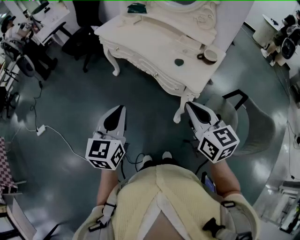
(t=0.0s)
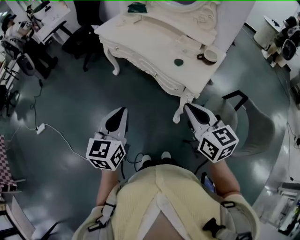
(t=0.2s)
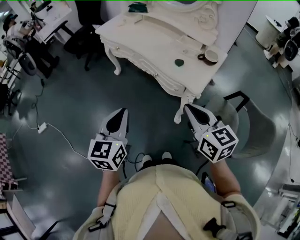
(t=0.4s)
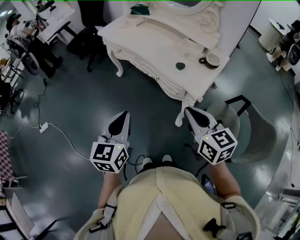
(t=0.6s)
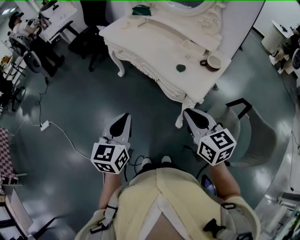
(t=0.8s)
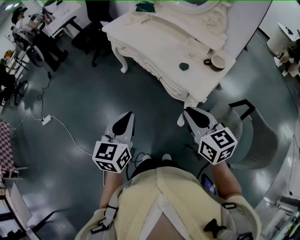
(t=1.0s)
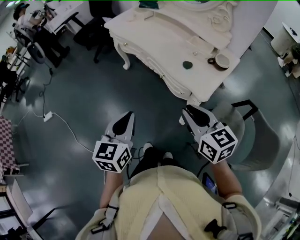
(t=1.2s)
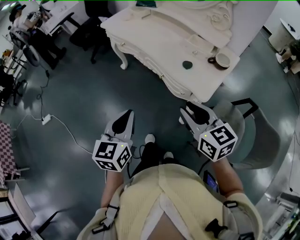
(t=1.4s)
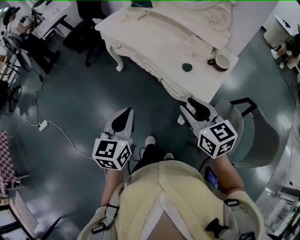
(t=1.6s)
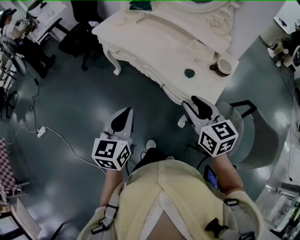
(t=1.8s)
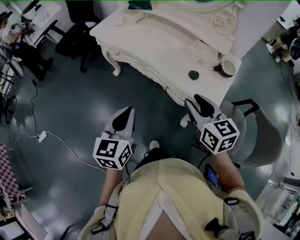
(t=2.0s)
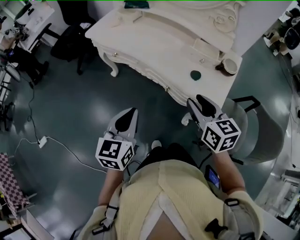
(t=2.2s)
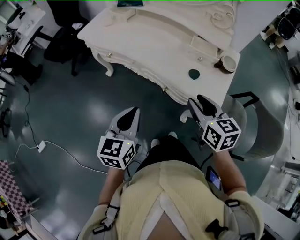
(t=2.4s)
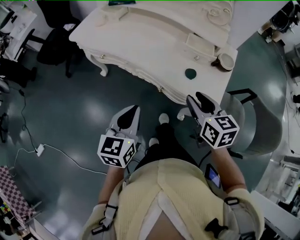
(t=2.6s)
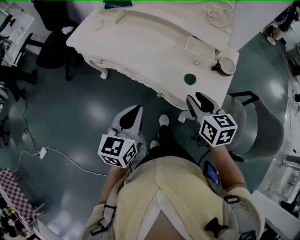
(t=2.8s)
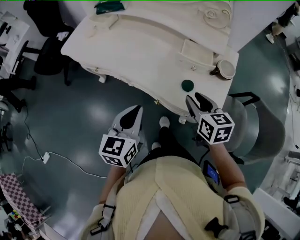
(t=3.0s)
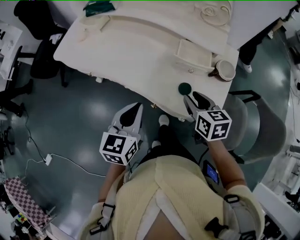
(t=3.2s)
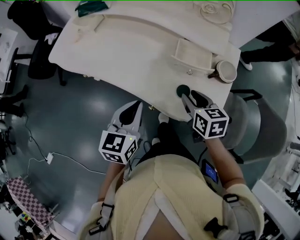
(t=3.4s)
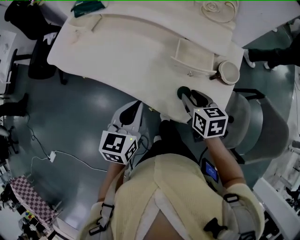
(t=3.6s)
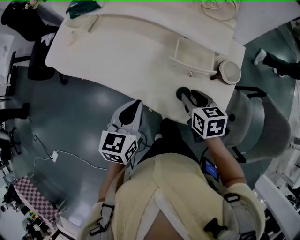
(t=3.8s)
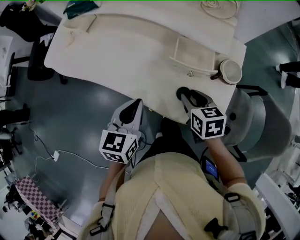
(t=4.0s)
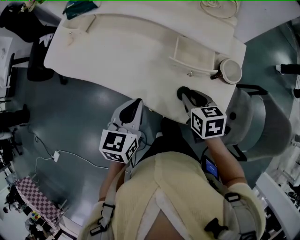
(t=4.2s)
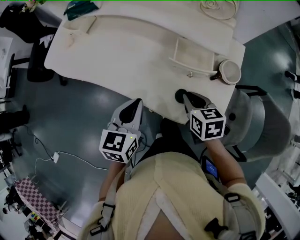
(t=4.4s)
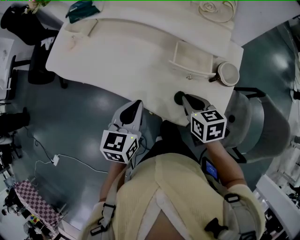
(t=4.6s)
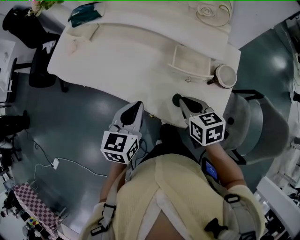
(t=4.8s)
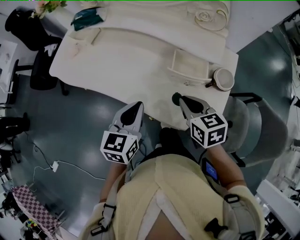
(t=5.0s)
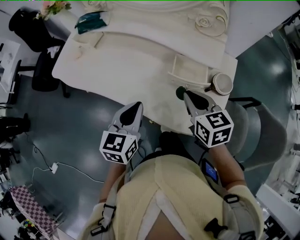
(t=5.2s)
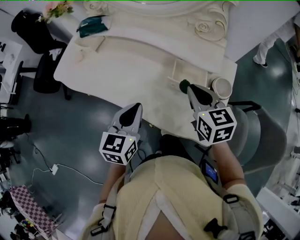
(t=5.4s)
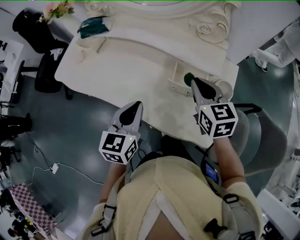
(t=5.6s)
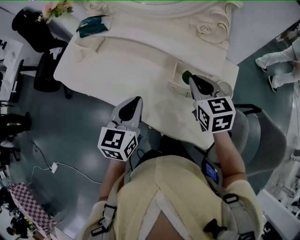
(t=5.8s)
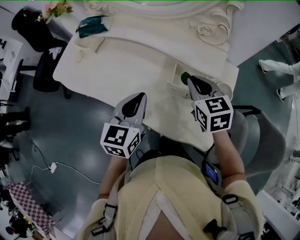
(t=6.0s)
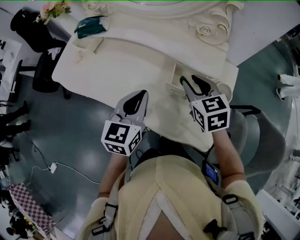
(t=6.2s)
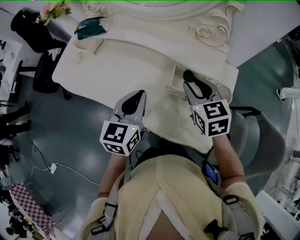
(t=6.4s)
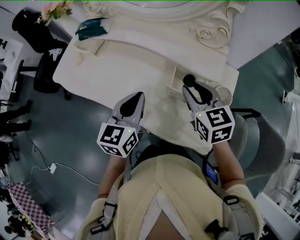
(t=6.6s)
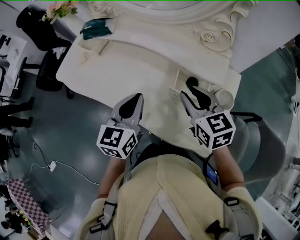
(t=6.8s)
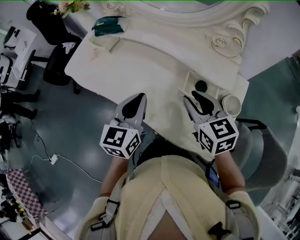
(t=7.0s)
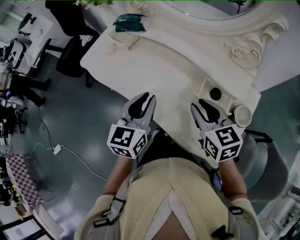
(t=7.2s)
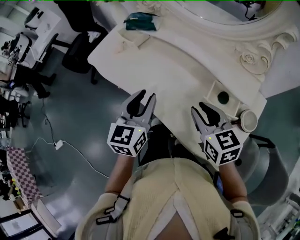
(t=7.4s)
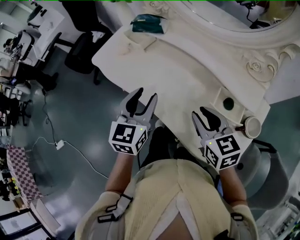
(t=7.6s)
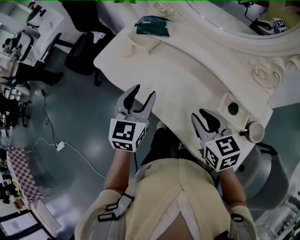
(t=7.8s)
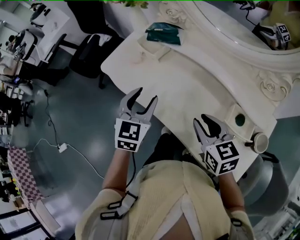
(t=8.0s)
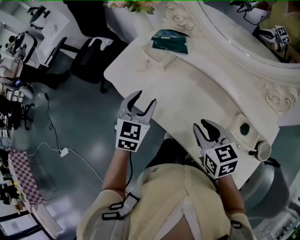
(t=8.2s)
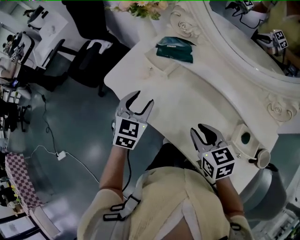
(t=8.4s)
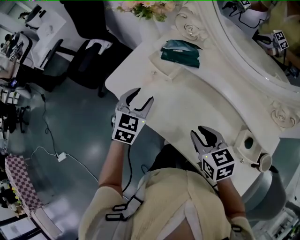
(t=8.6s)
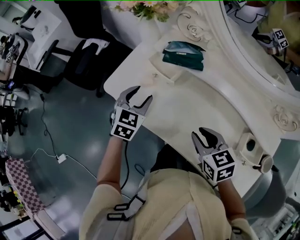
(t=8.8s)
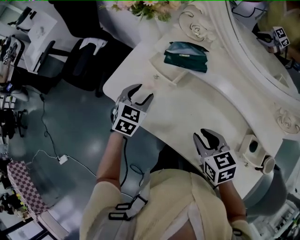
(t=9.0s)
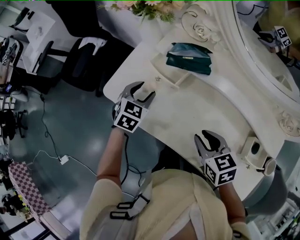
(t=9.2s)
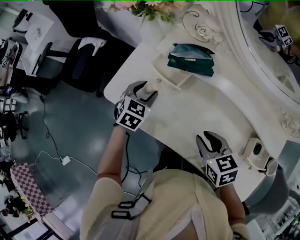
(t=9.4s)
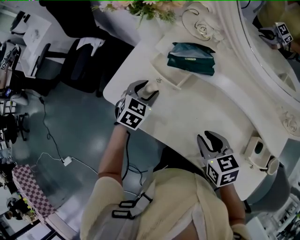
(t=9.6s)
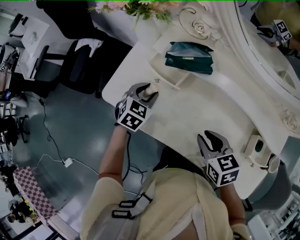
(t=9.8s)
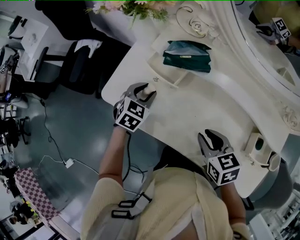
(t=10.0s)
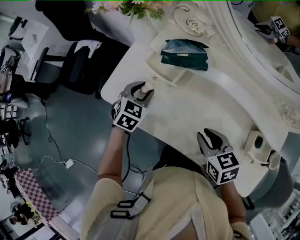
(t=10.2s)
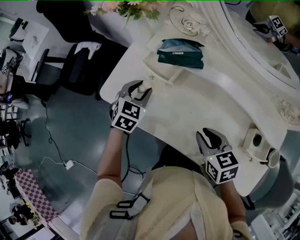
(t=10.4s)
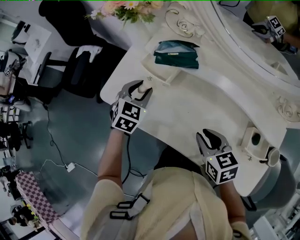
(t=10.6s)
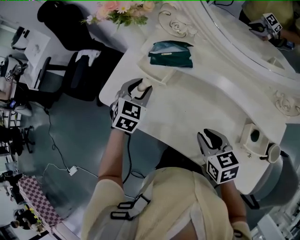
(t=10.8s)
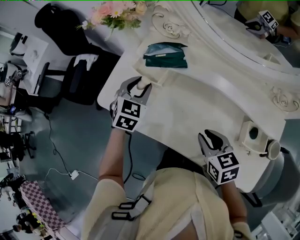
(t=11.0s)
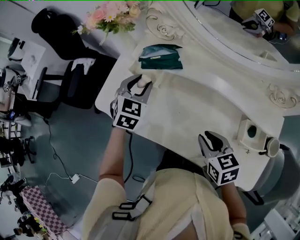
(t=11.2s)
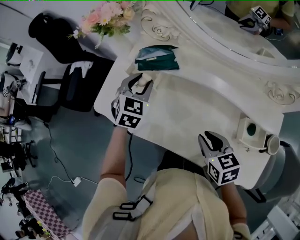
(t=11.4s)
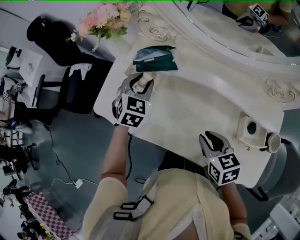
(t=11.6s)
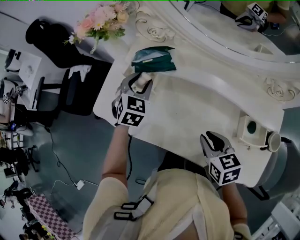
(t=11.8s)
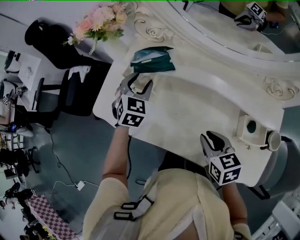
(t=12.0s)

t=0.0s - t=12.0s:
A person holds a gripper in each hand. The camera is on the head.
t=0.0s - t=1.6s: Both grippers move forward, approximately 10 cm. The right gripper opens up.
t=1.6s - t=3.0s: The left gripper is displaced forward by roughly 20 cm, and changes its angle by approximately 20 degrees, while the right gripper heads forward and downward, covering roughly 25 cm, and changes its angle by roughly 30 degrees.
t=3.0s - t=4.4s: The right gripper travels downward and forward by roughly 10 cm, and closes its fingers. The left gripper heads forward, covering about 10 cm.
t=4.4s - t=6.0s: The right gripper goes some 15 cm forward and upward, and turns by some 20 degrees; the left gripper goes some 10 cm forward and upward.
t=6.0s - t=7.6s: Both grippers move to the left, some 15 cm. The left gripper opens; the right gripper swivels roughly 20 degrees, and opens up.
t=7.6s - t=9.0s: The right gripper moves forward, to the left and downward, roughly 20 cm; the left gripper moves forward, to the left and downward, roughly 35 cm, and swivels some 30 degrees.
t=9.0s - t=10.4s: The grippers stay close to where they were, moving slightly.
t=10.4s - t=12.0s: The right gripper goes roughly 5 cm to the right, while the left gripper shifts roughly 10 cm to the right and upward.

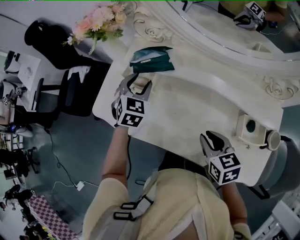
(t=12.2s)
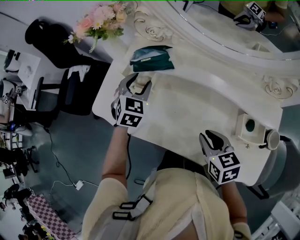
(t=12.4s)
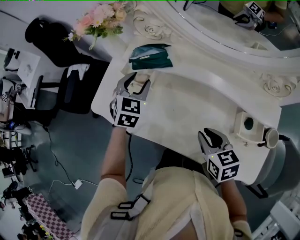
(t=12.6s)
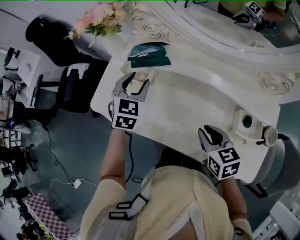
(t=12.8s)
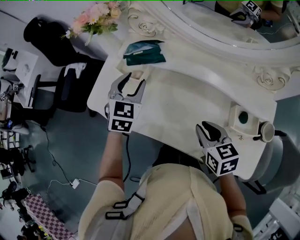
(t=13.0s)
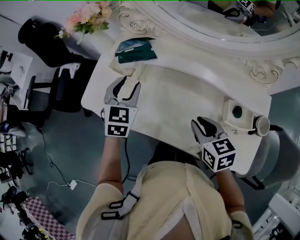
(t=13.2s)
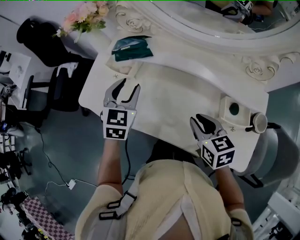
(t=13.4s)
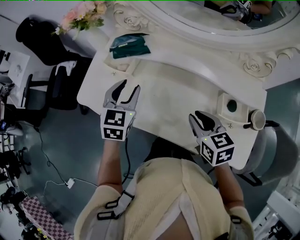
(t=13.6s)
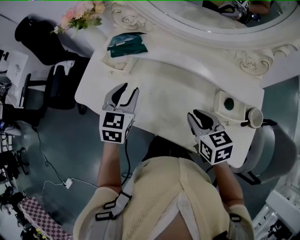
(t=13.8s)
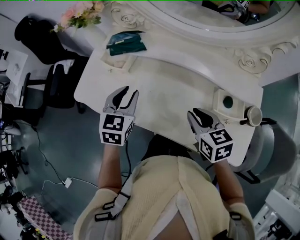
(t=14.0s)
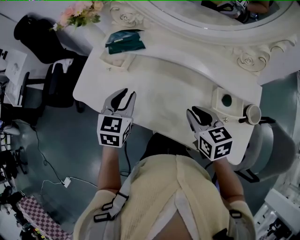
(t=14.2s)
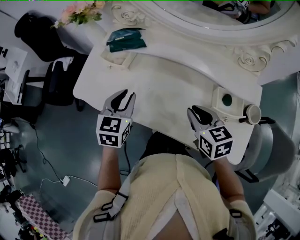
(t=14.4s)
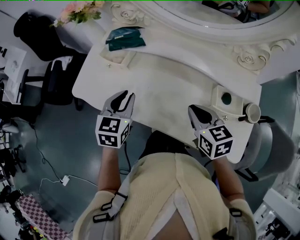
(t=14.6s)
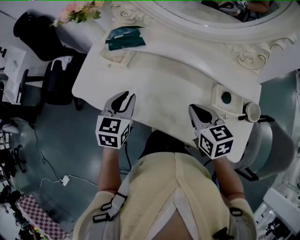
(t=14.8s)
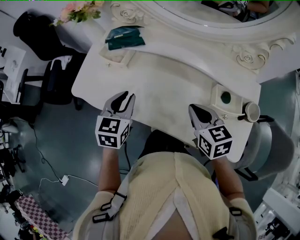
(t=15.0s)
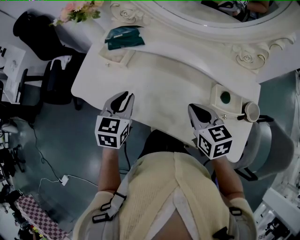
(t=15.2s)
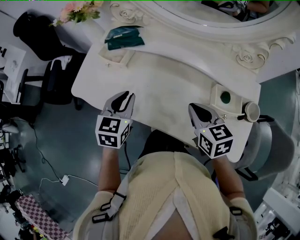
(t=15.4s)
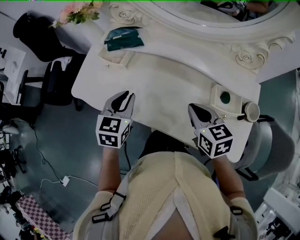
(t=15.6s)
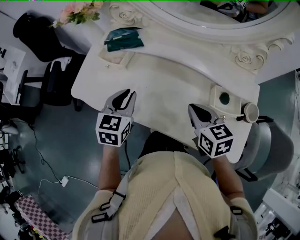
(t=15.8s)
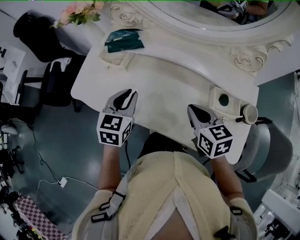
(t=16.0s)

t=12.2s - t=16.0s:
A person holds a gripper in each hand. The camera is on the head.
t=12.2s - t=13.4s: The left gripper goes about 10 cm backward.
t=13.4s - t=14.8s: The right gripper closes. The left gripper is displaced backward by approximately 10 cm, and closes its fingers.
t=14.8s - t=16.0s: The grippers move only a little.

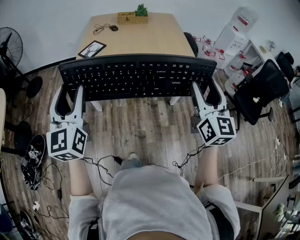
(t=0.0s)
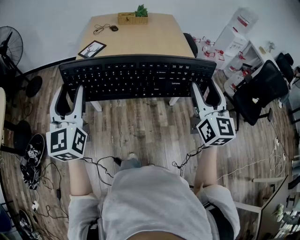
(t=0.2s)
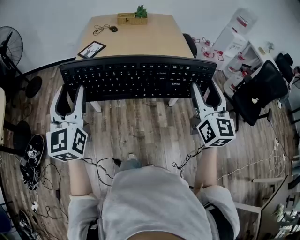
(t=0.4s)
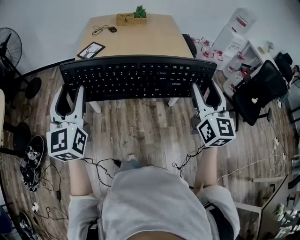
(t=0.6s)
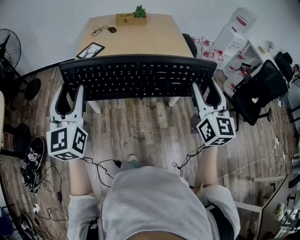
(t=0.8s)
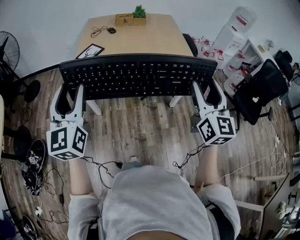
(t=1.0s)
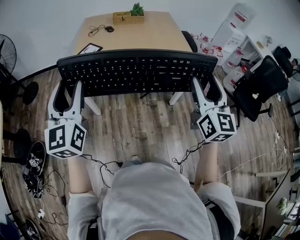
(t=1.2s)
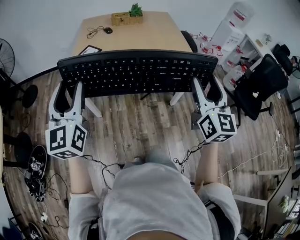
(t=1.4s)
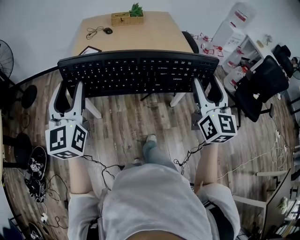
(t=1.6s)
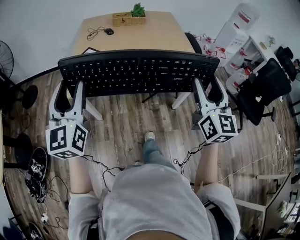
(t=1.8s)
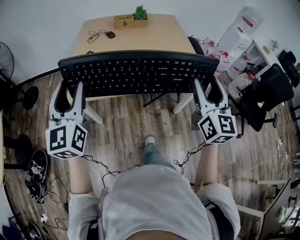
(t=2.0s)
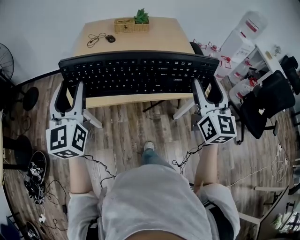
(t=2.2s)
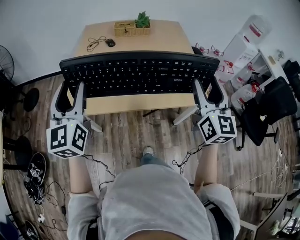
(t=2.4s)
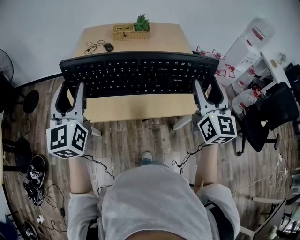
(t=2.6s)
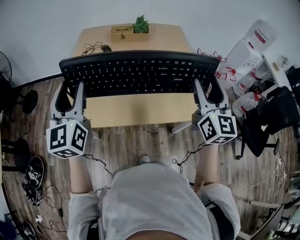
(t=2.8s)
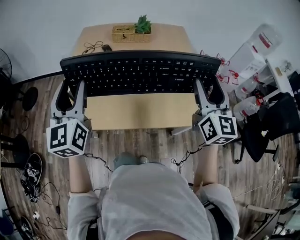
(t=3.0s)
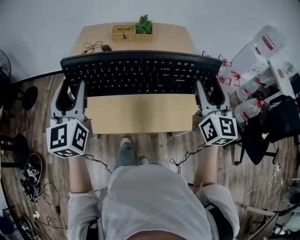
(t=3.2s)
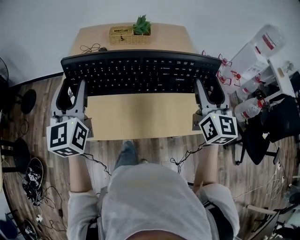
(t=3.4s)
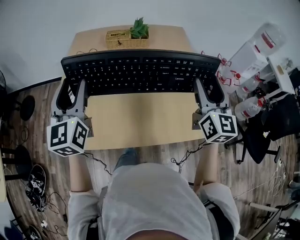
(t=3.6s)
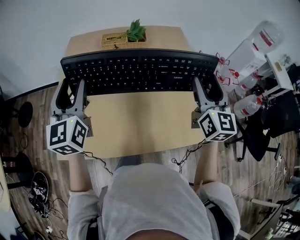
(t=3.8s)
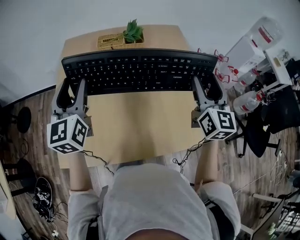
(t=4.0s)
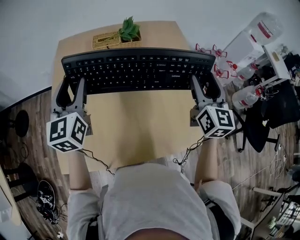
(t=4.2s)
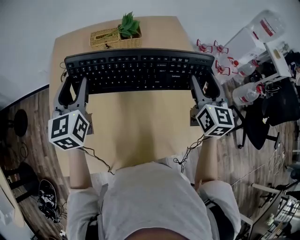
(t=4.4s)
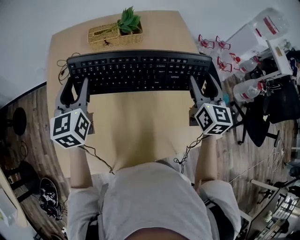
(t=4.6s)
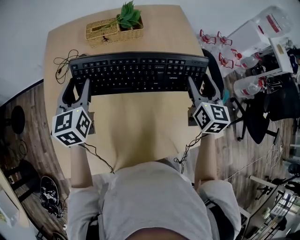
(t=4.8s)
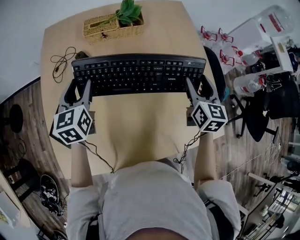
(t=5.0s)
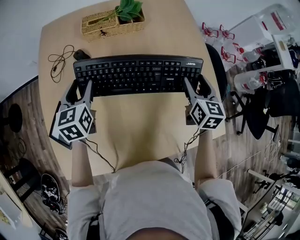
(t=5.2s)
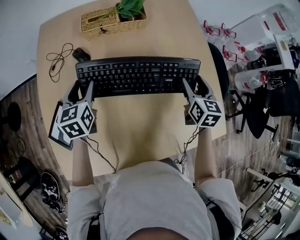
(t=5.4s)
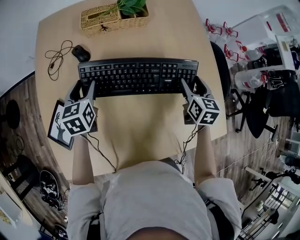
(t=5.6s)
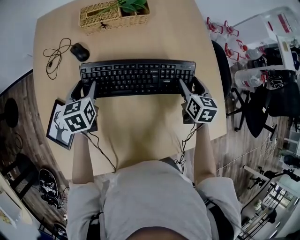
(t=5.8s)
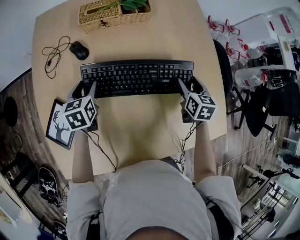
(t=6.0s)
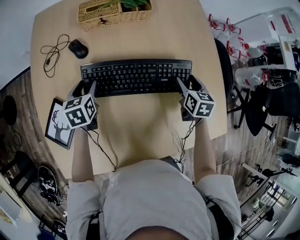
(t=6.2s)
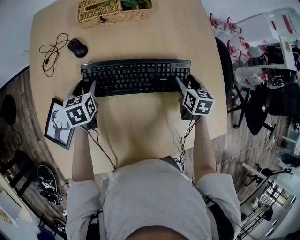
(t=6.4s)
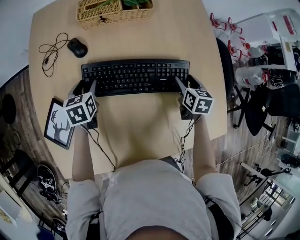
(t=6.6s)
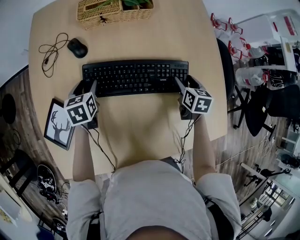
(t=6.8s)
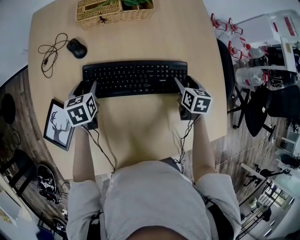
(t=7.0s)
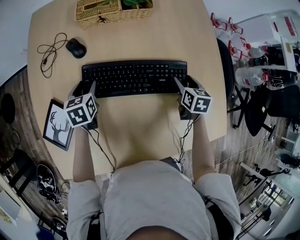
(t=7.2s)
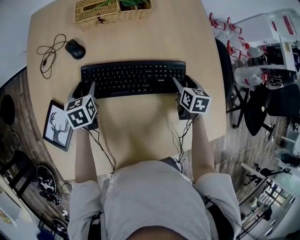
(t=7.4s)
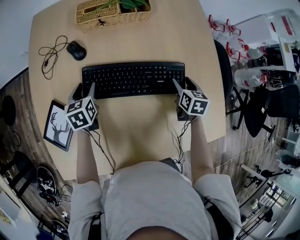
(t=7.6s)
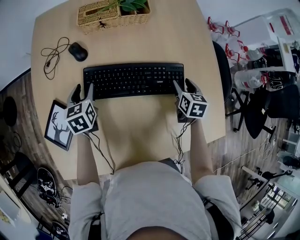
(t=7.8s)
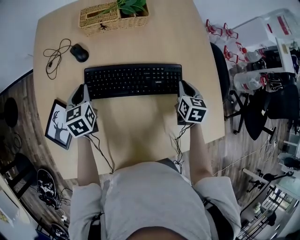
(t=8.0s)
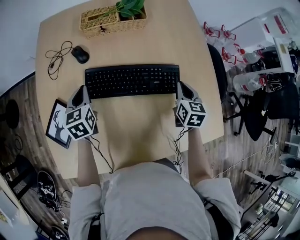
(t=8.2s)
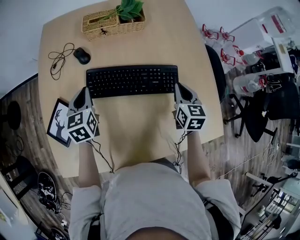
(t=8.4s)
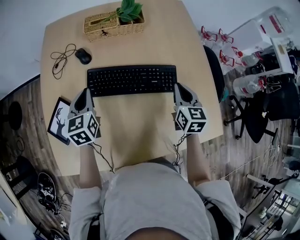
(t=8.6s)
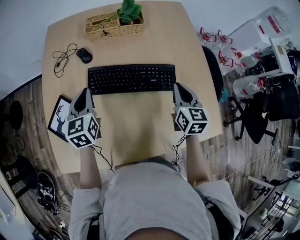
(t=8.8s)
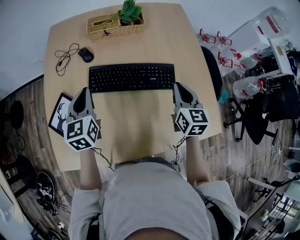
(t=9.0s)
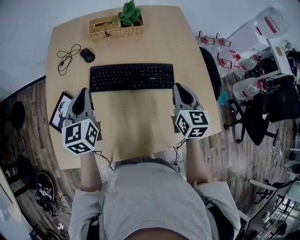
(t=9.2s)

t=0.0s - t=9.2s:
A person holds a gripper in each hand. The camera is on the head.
t=0.0s - t=1.6s: The two grippers go some 10 cm forward.
t=1.6s - t=3.0s: Both grippers move forward, approximately 30 cm.
t=3.0s - t=4.6s: The right gripper shifts some 25 cm forward and downward, while the left gripper heads forward, covering approximately 30 cm.
t=4.6s - t=6.2s: Both grippers move downward, about 25 cm. The right gripper tilts its fingers some 30 degrees downward; the left gripper angles its fingers downward, by approximately 30 degrees.
t=6.2s - t=7.6s: The grippers move only a little.
t=7.6s - t=9.2s: Both grippers travel together upward and backward, roughly 25 cm. The left gripper turns by some 30 degrees, and closes its fingers. The right gripper changes its angle by about 30 degrees, and closes its fingers.
